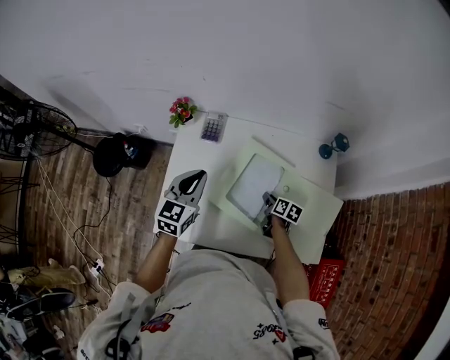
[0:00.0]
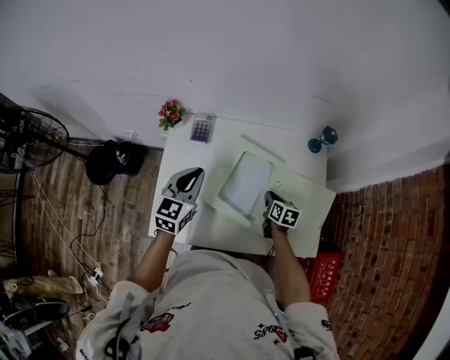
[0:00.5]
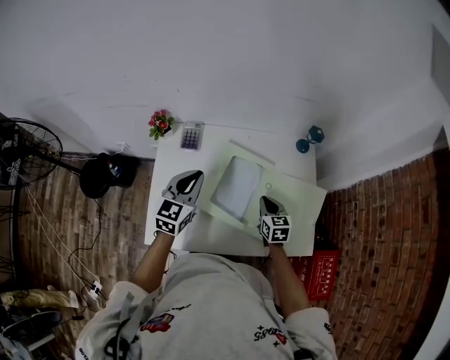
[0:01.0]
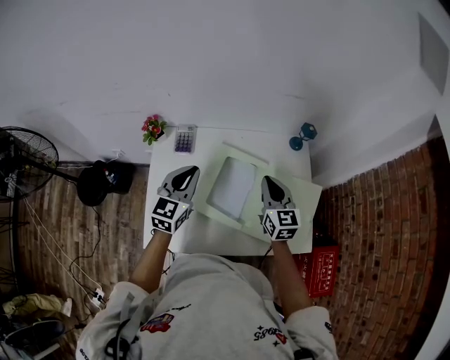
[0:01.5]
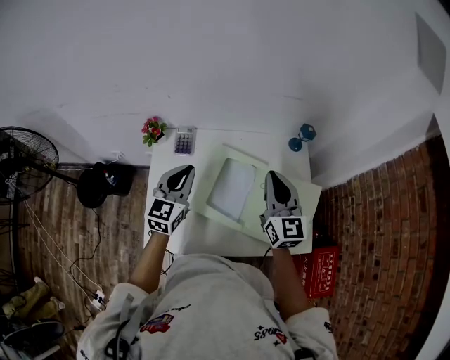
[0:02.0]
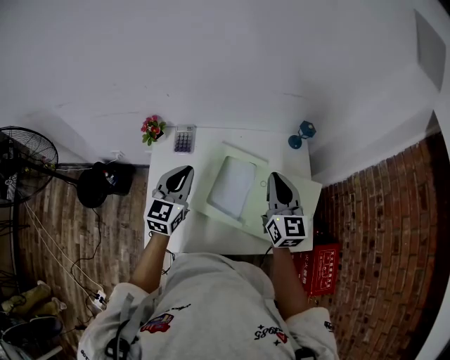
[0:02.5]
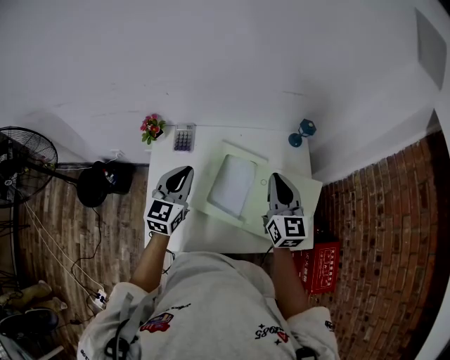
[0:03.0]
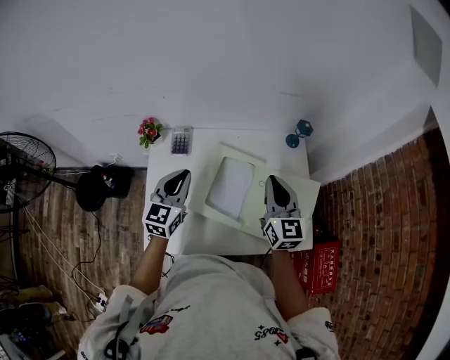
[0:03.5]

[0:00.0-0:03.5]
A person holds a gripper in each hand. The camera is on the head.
0:00.0 to 0:02.0: The left gripper heads upward, covering approximately 5 cm. The right gripper shifts approximately 35 cm upward, tips its fingers upward by approximately 40 degrees, and closes up.
0:02.0 to 0:03.5: The grippers stay close to where they were, moving slightly.

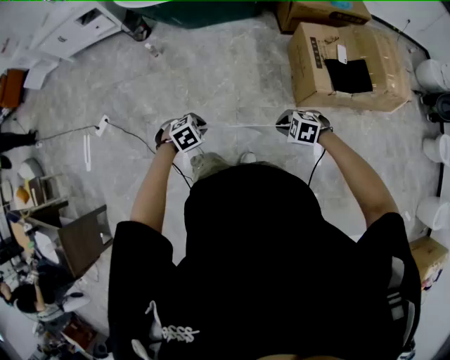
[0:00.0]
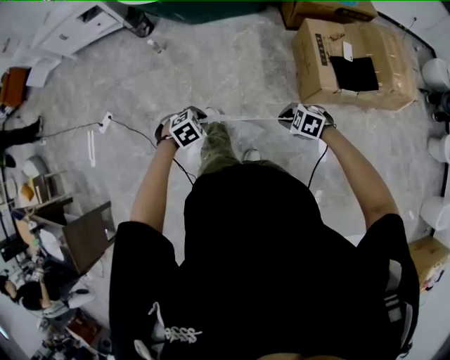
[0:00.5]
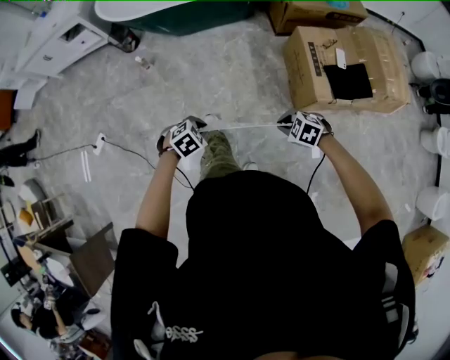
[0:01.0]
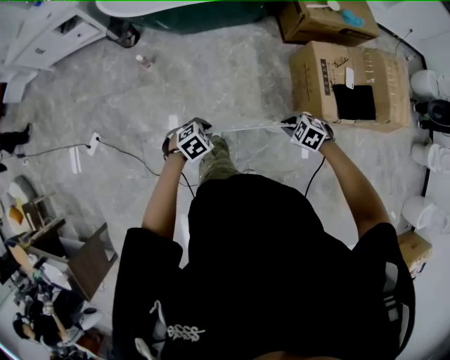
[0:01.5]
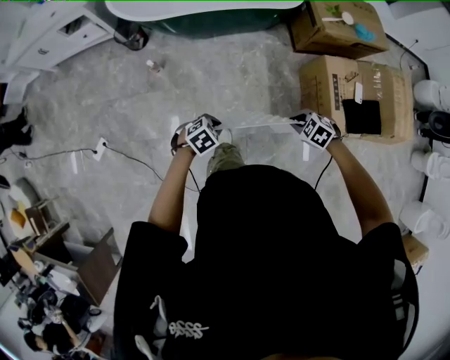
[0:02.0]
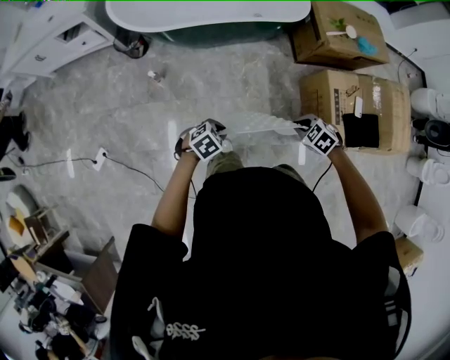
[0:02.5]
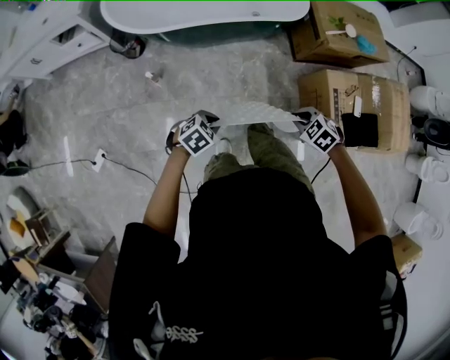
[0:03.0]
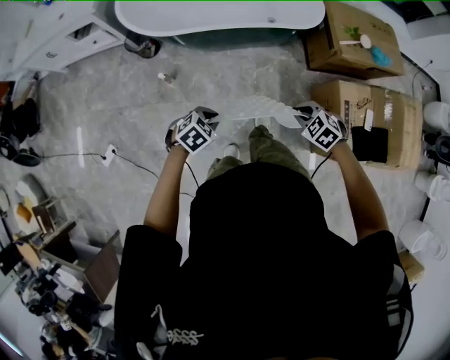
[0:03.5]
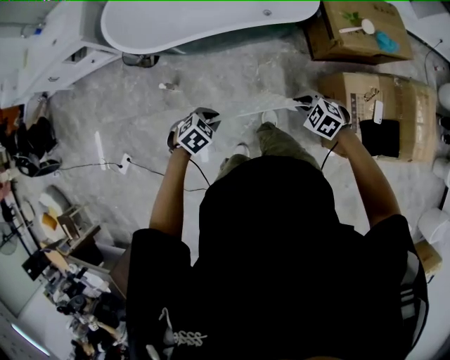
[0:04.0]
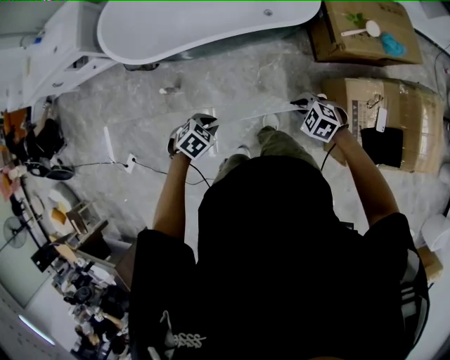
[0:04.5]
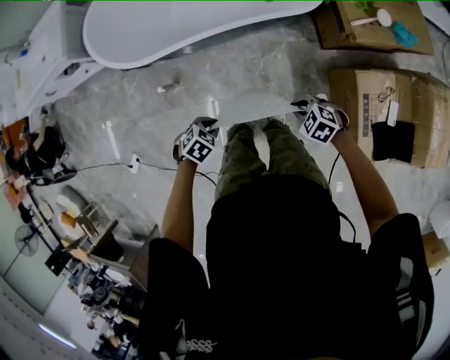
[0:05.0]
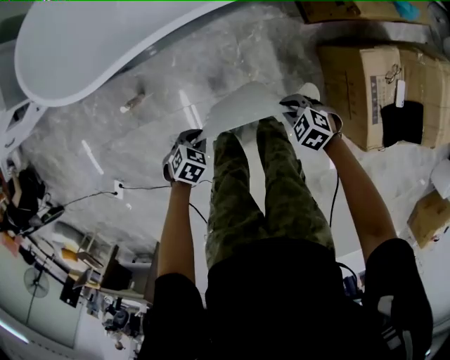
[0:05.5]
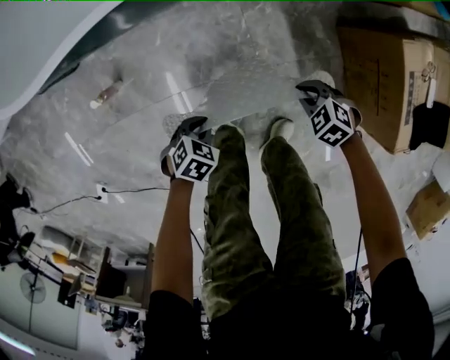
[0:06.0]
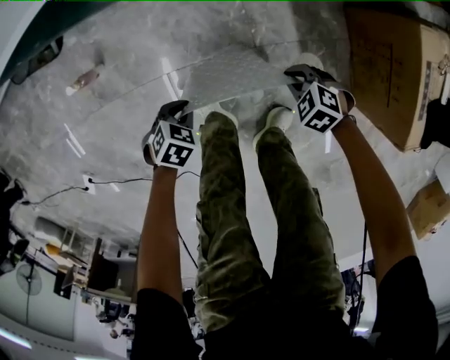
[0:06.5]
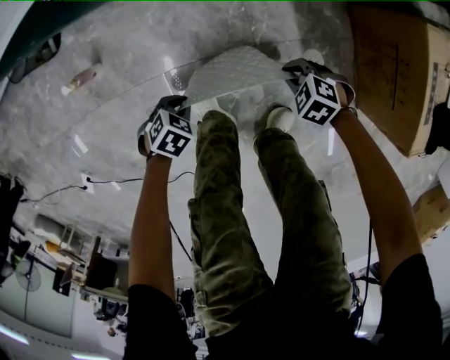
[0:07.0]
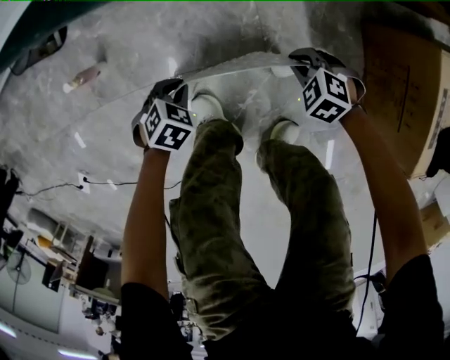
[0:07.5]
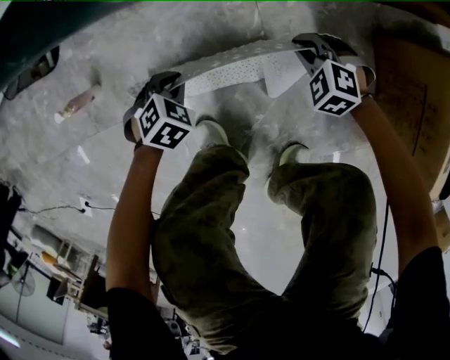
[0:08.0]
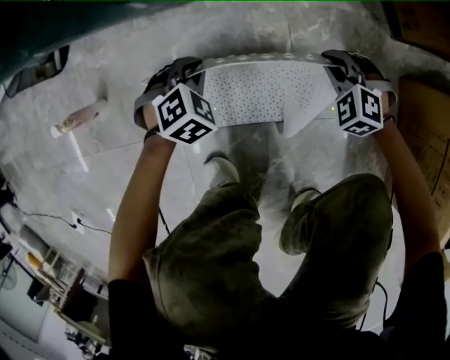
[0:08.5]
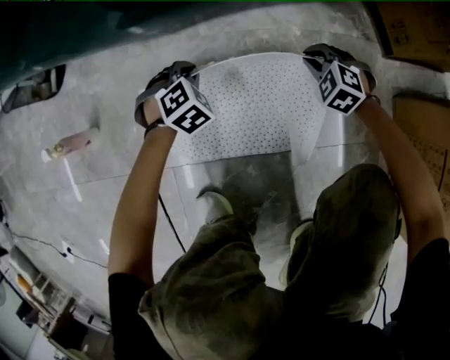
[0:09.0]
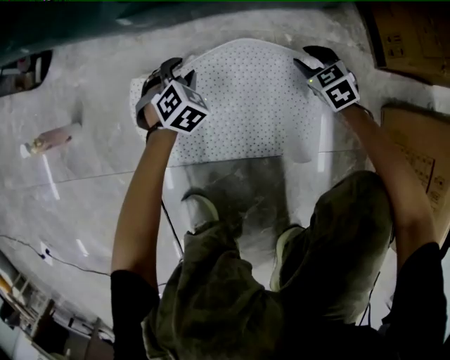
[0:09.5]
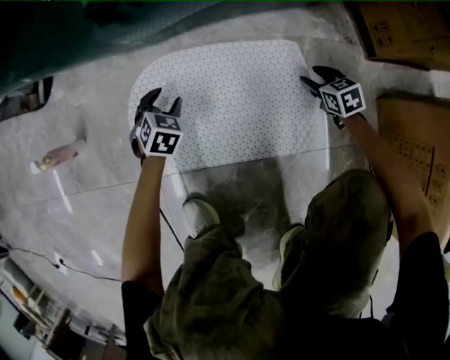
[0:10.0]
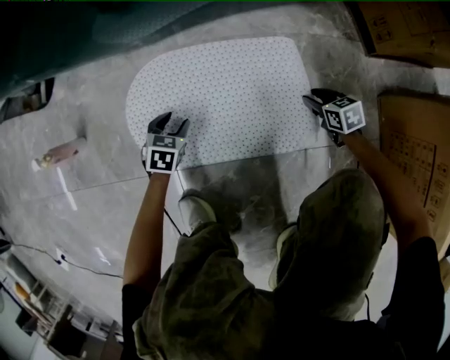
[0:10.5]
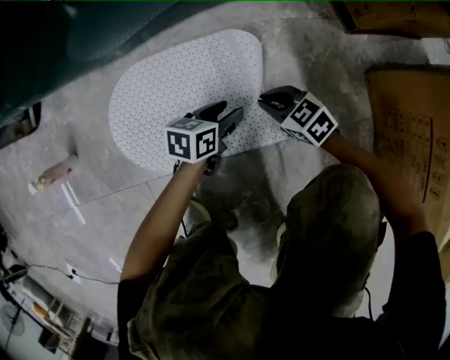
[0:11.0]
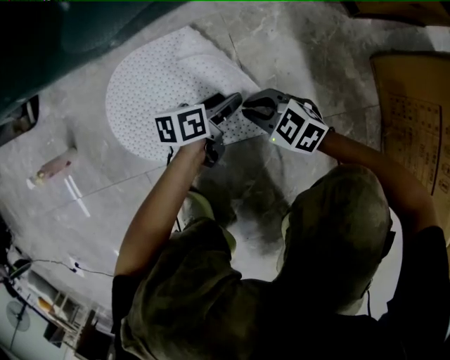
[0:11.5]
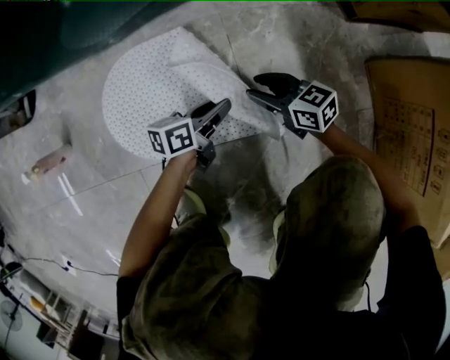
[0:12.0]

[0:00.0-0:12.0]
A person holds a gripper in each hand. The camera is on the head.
0:00.0 to 0:02.0: The two grippers travel together, about 40 cm.
0:02.0 to 0:04.0: The right gripper ends up about 30 cm from where it was, while the left gripper changes place by roughly 30 cm.
0:04.0 to 0:06.0: The grippers both shift downward by approximately 60 cm.
0:06.0 to 0:08.0: Both grippers move downward, approximately 25 cm. The right gripper changes its angle by some 30 degrees. The left gripper turns by about 20 degrees.
0:08.0 to 0:10.0: The left gripper travels downward and forward by approximately 20 cm, swivels approximately 30 degrees, and opens its fingers. The right gripper travels downward, forward and to the right by some 25 cm, twists approximately 50 degrees clockwise, seen from behind, and opens its fingers.
0:10.0 to 0:12.0: The right gripper ends up about 15 cm from where it was, changes its angle by about 30 degrees, and closes, then reopens. The left gripper shifts by approximately 25 cm, tilts its fingers some 40 degrees upward, and closes its fingers.

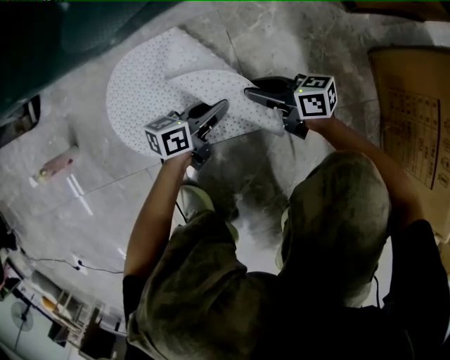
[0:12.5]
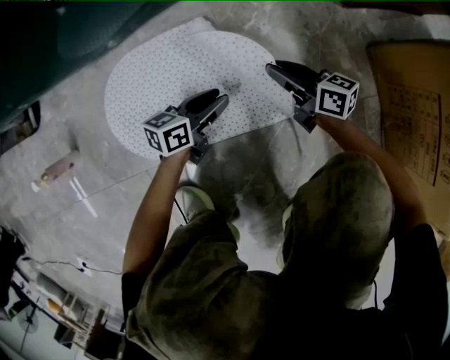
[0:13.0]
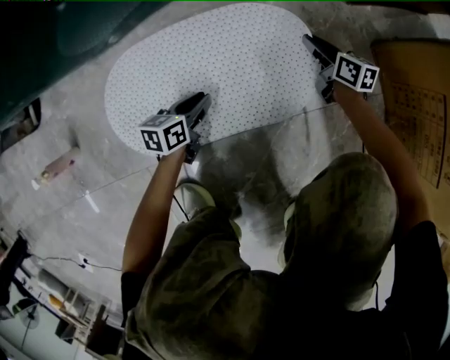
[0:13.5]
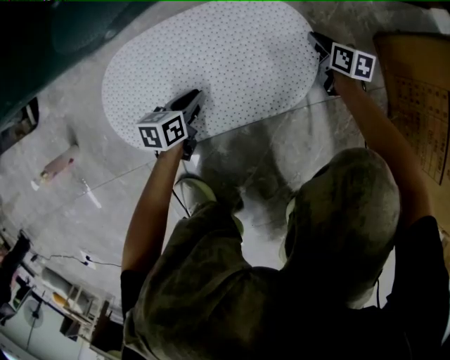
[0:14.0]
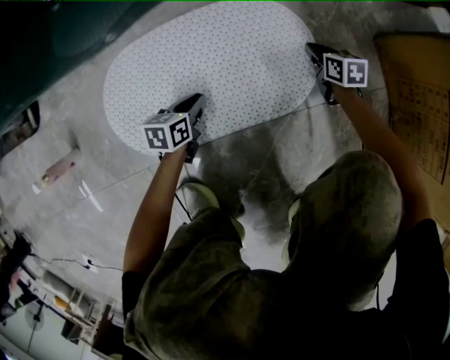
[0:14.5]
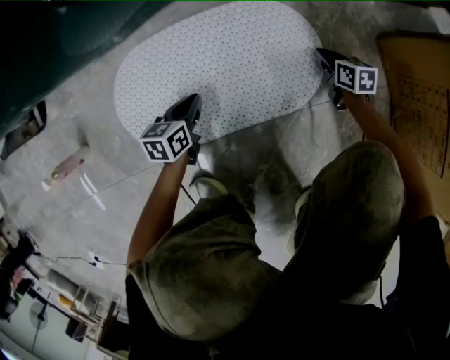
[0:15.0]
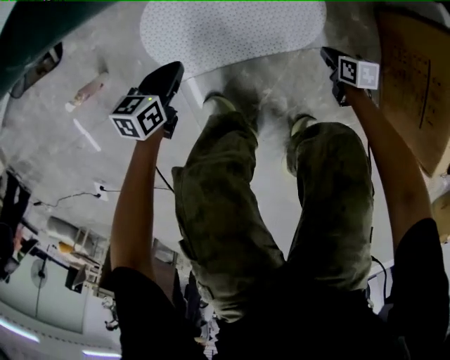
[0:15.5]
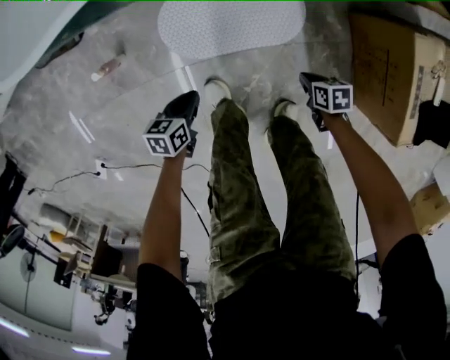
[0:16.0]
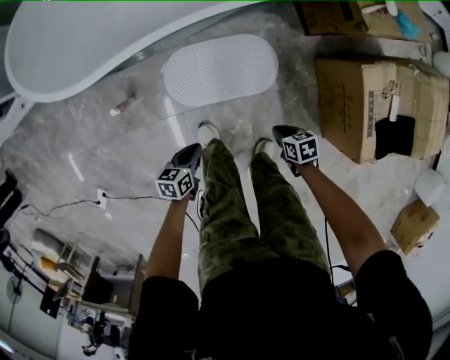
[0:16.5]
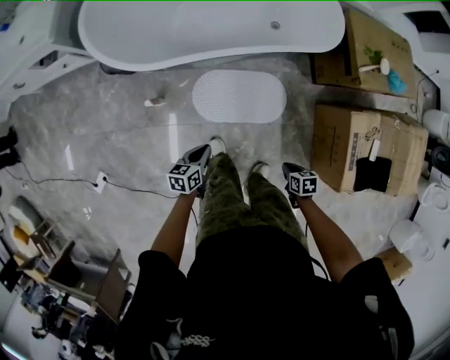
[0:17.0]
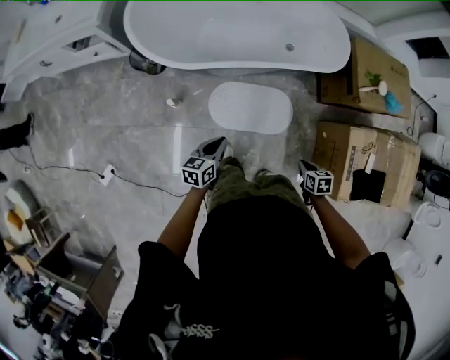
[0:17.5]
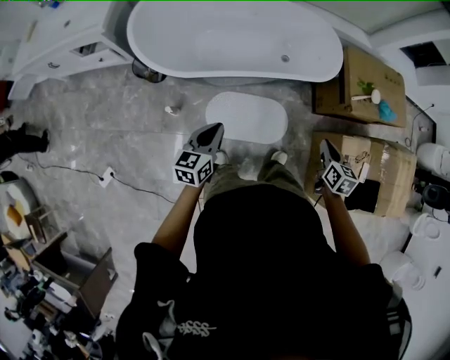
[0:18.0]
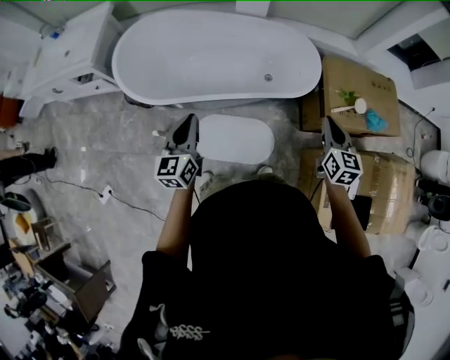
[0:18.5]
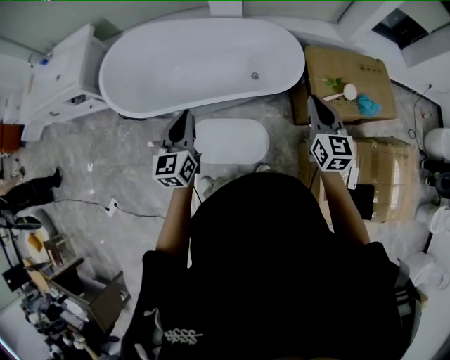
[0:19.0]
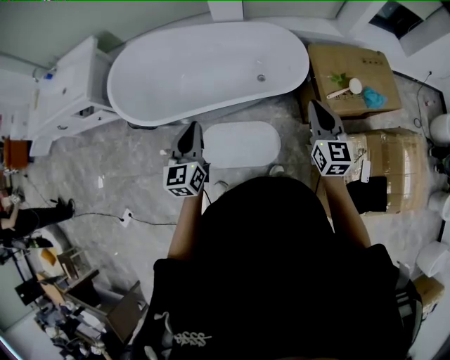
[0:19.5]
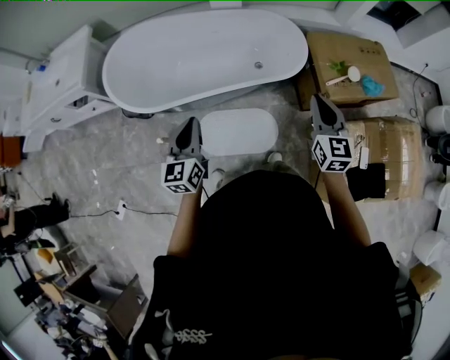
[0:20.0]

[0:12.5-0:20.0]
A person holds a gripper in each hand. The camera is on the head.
0:12.5 to 0:14.5: The left gripper is displaced downward by some 10 cm, and swivels about 30 degrees. The right gripper changes place by some 25 cm, and points its fingers roughly 30 degrees further downward.
0:14.5 to 0:16.5: The two grippers go about 60 cm upward. The right gripper changes its angle by roughly 30 degrees.
0:16.5 to 0:18.0: Both grippers travel together upward, approximately 50 cm. The right gripper changes its angle by some 40 degrees. Meanwhile the left gripper swivels about 40 degrees.
0:18.0 to 0:20.0: The left gripper moves to the right, upward and forward, approximately 20 cm. Meanwhile the right gripper travels upward, to the right and forward by some 25 cm, and swivels some 30 degrees.

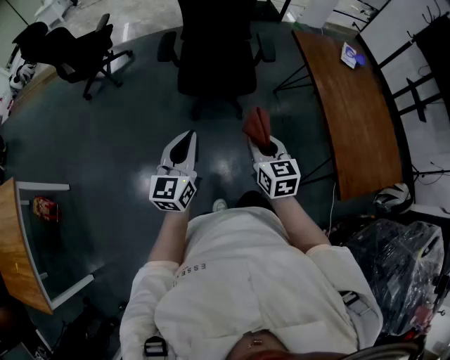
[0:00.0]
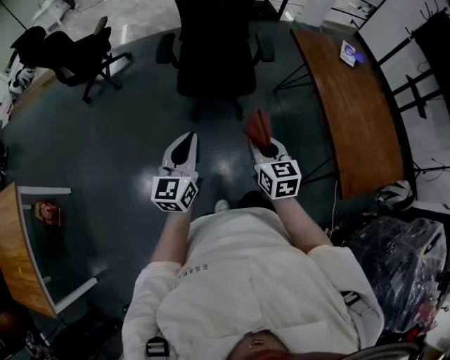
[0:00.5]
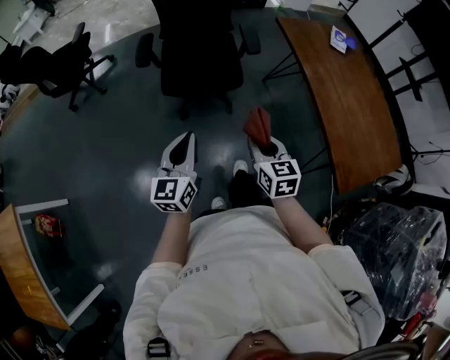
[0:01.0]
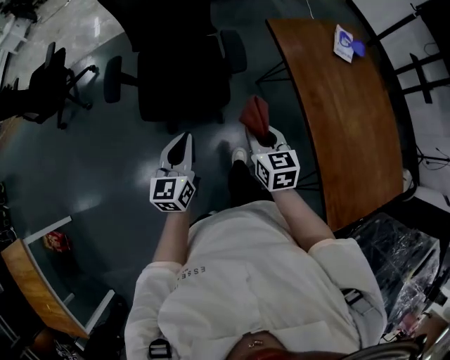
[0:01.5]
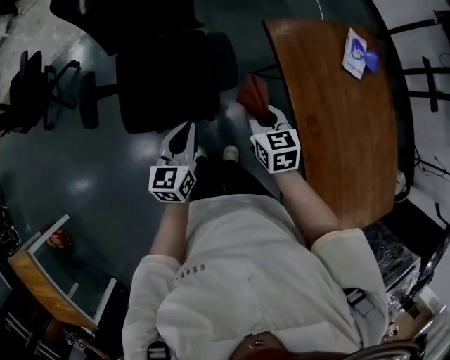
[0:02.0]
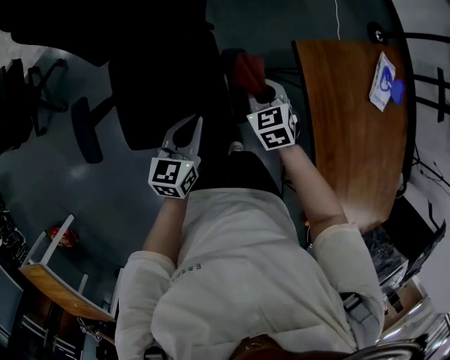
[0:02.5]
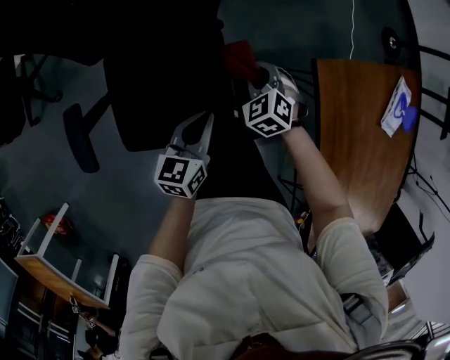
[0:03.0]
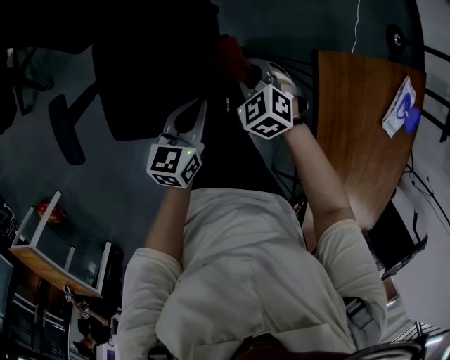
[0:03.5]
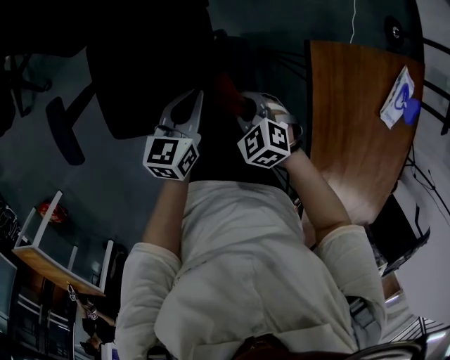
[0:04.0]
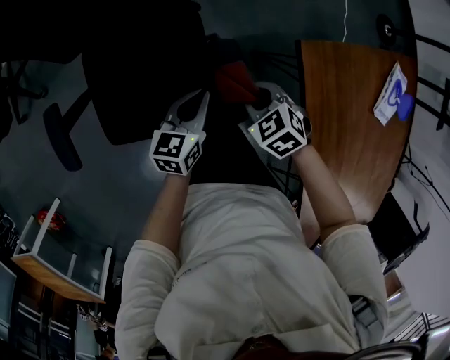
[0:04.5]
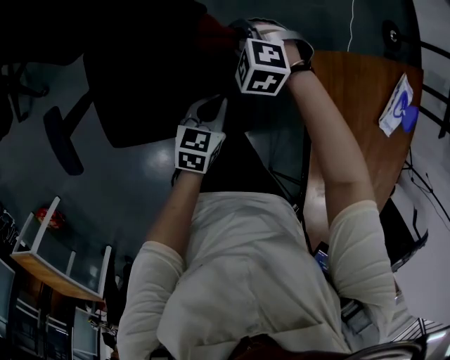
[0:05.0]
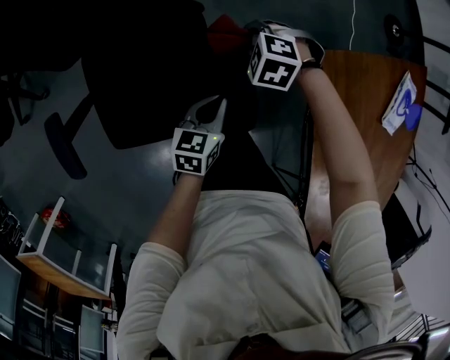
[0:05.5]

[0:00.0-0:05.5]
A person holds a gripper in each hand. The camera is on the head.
0:00.0 to 0:02.0: Both grippers are carried forward and to the right, approximately 50 cm. The left gripper turns by approximately 20 degrees.
0:02.0 to 0:03.5: Both grippers move forward and downward, about 25 cm. The right gripper twists approximately 50 degrees counterclockwise, seen from behind.
0:03.5 to 0:05.5: The left gripper shifts by approximately 10 cm. Meanwhile the right gripper shifts by about 10 cm, and turns by approximately 30 degrees.
